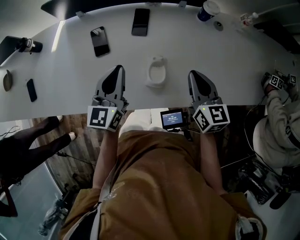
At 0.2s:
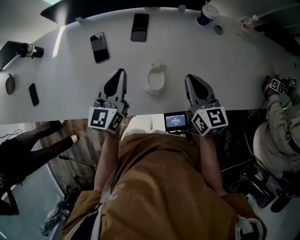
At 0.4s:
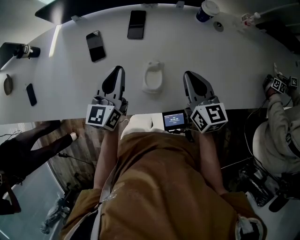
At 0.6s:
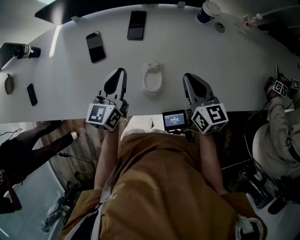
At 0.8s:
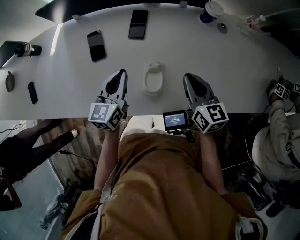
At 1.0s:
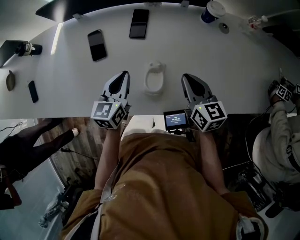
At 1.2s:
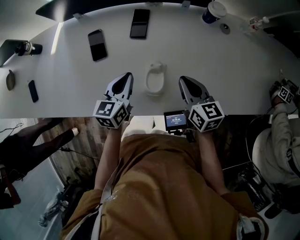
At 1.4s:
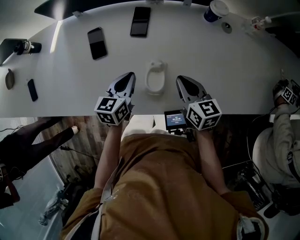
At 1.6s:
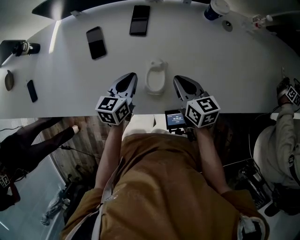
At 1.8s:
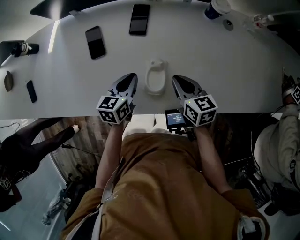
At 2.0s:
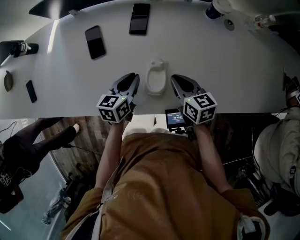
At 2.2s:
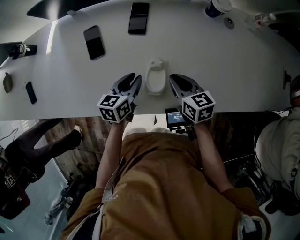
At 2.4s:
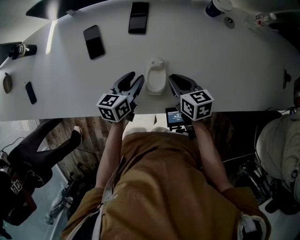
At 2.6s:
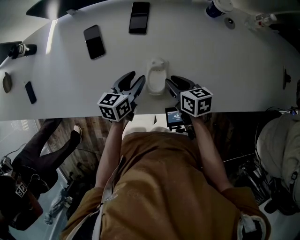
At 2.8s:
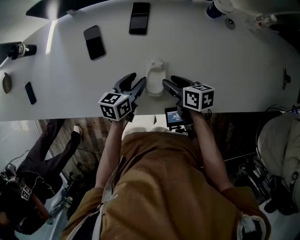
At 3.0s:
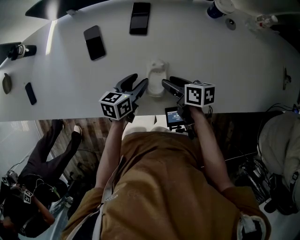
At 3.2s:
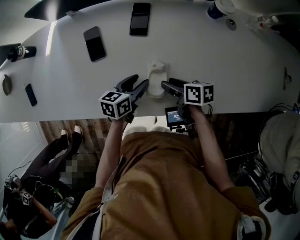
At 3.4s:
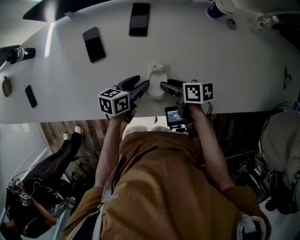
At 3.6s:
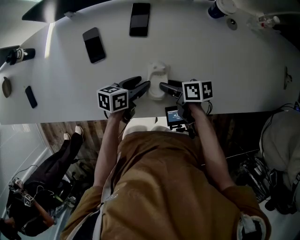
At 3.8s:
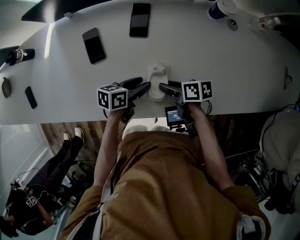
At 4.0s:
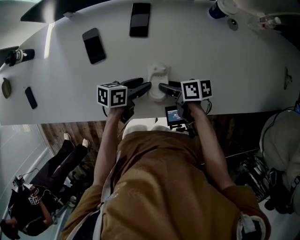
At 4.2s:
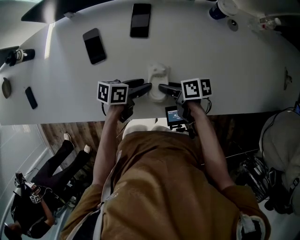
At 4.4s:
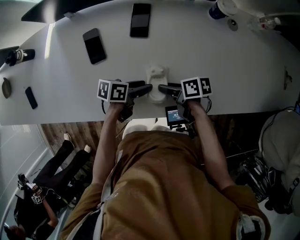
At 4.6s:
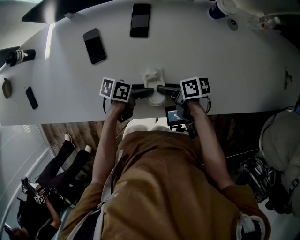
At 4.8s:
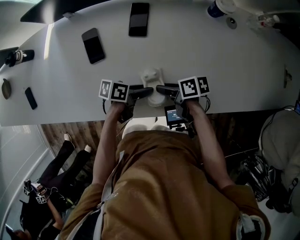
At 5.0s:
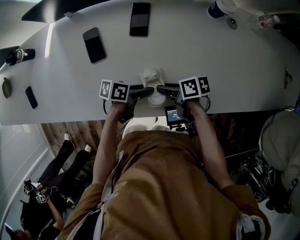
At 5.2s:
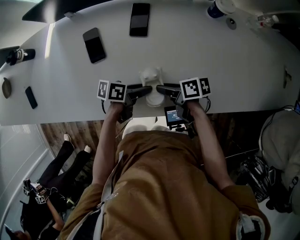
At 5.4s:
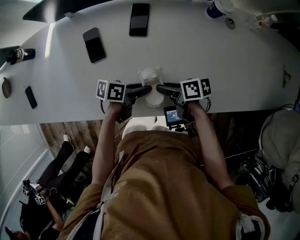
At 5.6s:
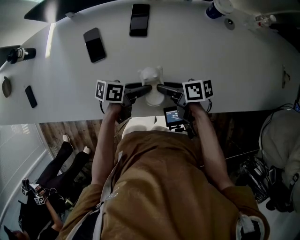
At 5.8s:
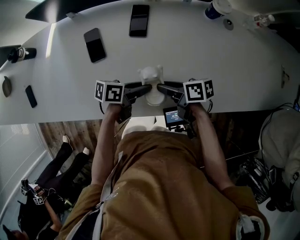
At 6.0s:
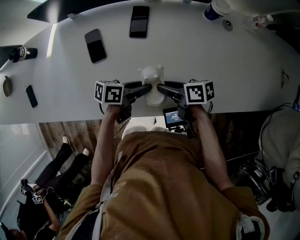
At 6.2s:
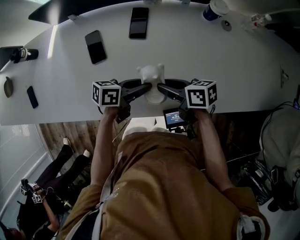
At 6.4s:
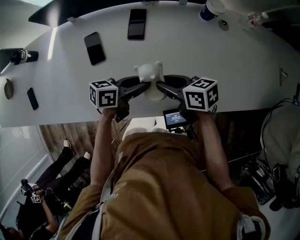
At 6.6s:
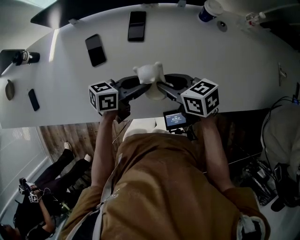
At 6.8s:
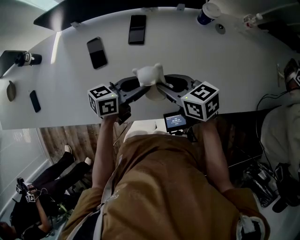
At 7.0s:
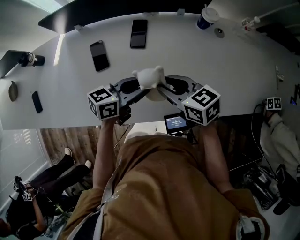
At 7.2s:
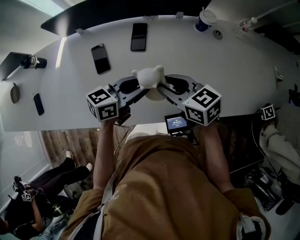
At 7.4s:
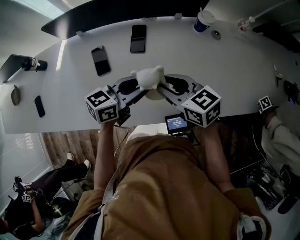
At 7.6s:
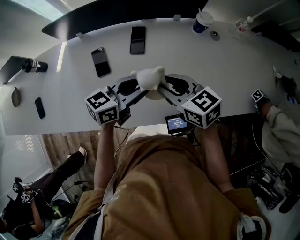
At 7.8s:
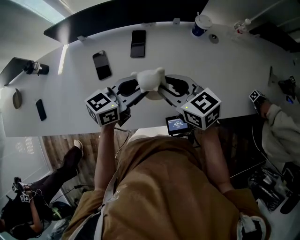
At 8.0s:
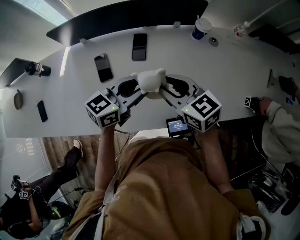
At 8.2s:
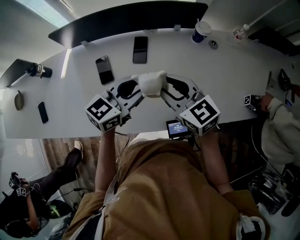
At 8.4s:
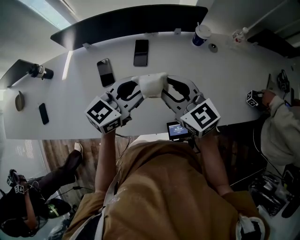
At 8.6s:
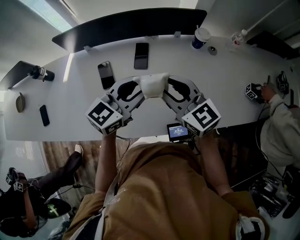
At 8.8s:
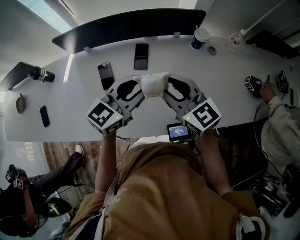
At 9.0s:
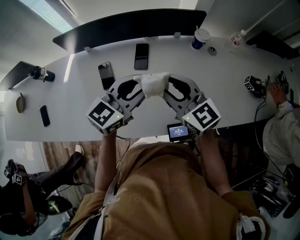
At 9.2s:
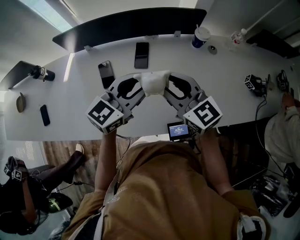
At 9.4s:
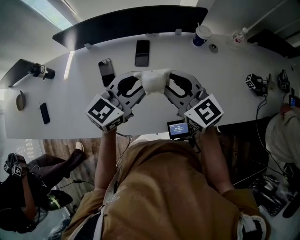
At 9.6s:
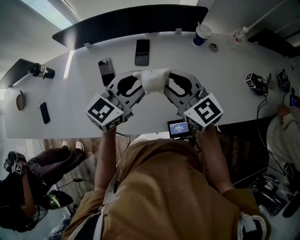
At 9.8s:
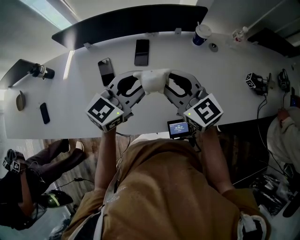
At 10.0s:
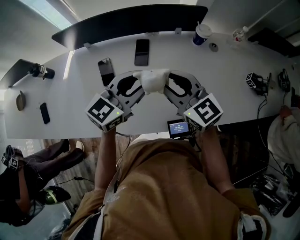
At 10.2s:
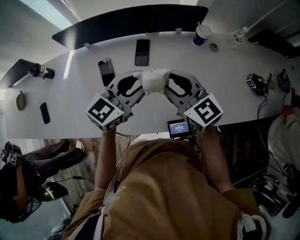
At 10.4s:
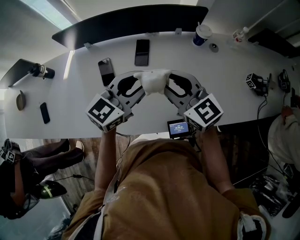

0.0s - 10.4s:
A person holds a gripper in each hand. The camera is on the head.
0.0s - 1.4s: The grippers both shift downward by about 10 cm. The left gripper changes its angle by about 30 degrees.
1.4s - 3.0s: The two grippers go approximately 10 cm downward. The right gripper turns by roughly 40 degrees, and opens its fingers. The left gripper opens.
3.0s - 4.4s: The left gripper rotates about 30 degrees.
4.4s - 6.0s: The right gripper travels upward by about 5 cm.
6.0s - 7.4s: The two grippers go about 15 cm upward. The left gripper changes its angle by some 40 degrees. Meanwhile the right gripper rotates around the line of its fingers by roughly 40 degrees, counterclockwise from behind.
7.4s - 9.0s: Both grippers move upward, about 10 cm. The left gripper changes its angle by about 30 degrees. The right gripper changes its angle by about 30 degrees.
9.0s - 10.4s: Neither gripper changes place.

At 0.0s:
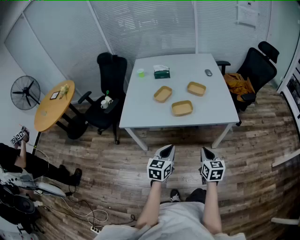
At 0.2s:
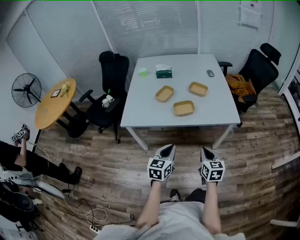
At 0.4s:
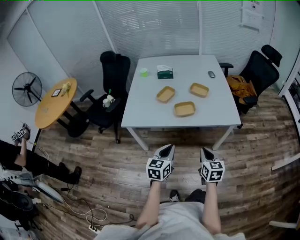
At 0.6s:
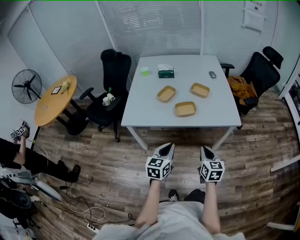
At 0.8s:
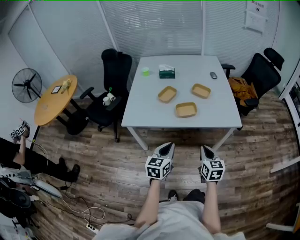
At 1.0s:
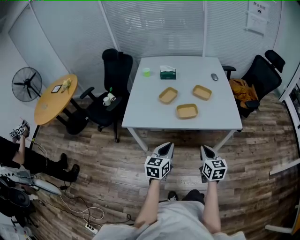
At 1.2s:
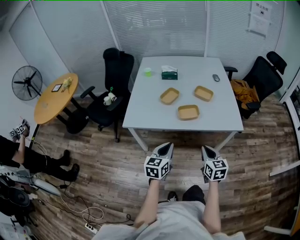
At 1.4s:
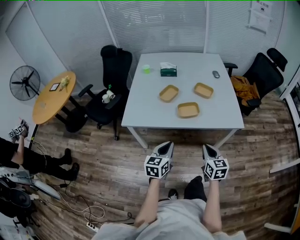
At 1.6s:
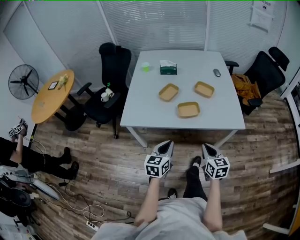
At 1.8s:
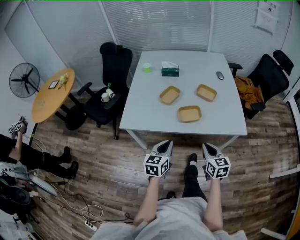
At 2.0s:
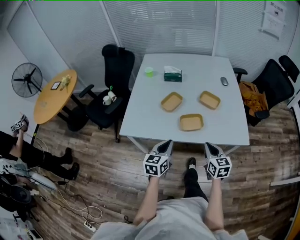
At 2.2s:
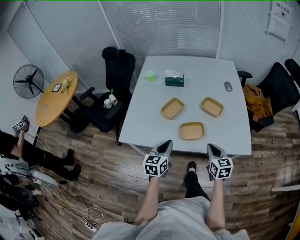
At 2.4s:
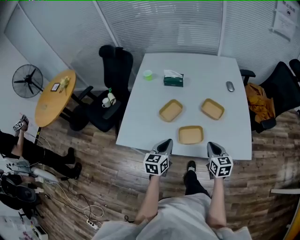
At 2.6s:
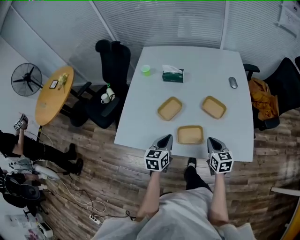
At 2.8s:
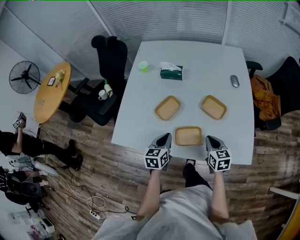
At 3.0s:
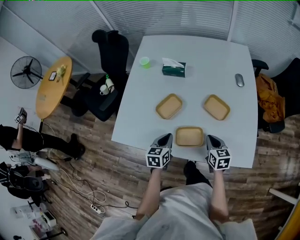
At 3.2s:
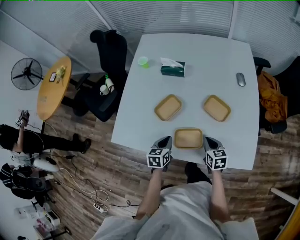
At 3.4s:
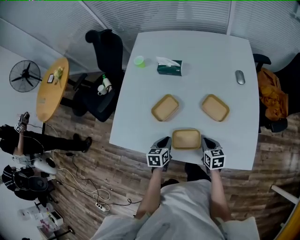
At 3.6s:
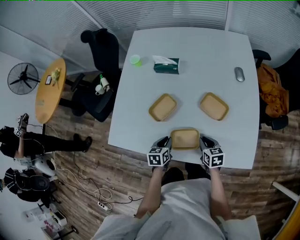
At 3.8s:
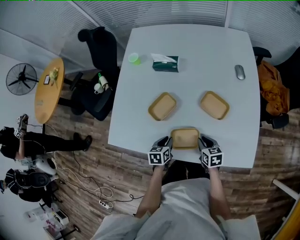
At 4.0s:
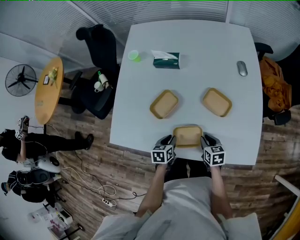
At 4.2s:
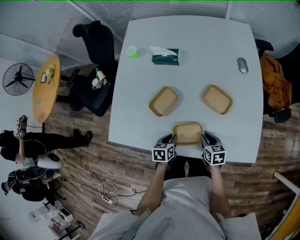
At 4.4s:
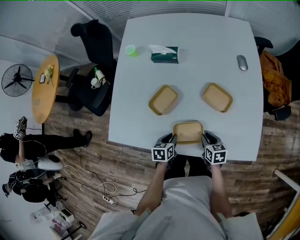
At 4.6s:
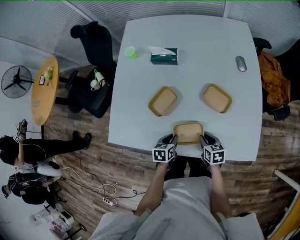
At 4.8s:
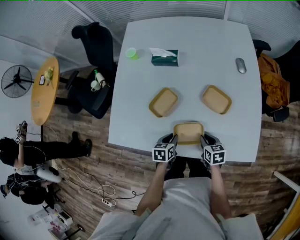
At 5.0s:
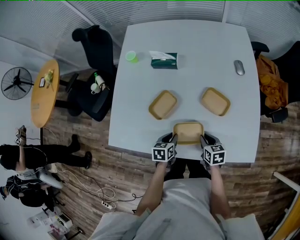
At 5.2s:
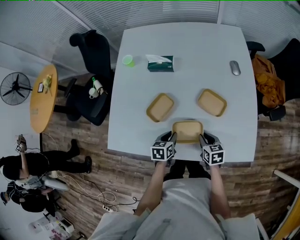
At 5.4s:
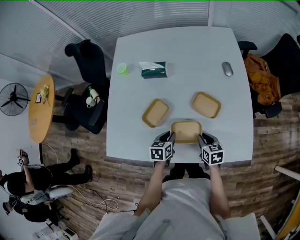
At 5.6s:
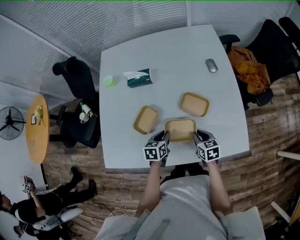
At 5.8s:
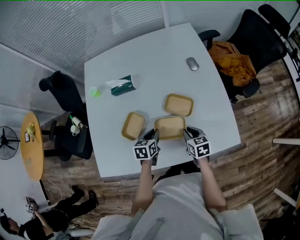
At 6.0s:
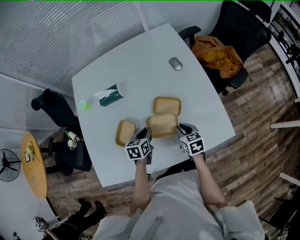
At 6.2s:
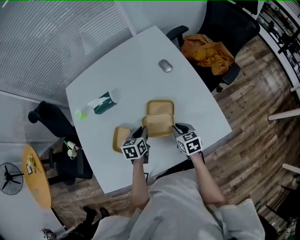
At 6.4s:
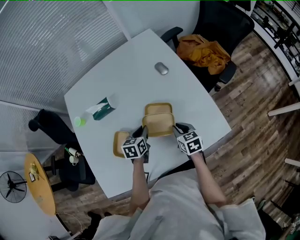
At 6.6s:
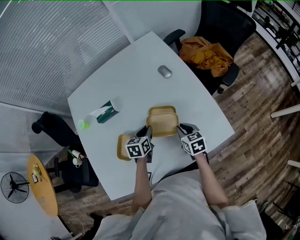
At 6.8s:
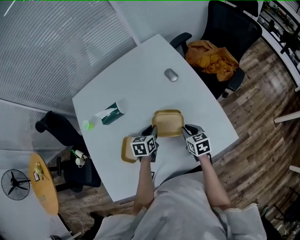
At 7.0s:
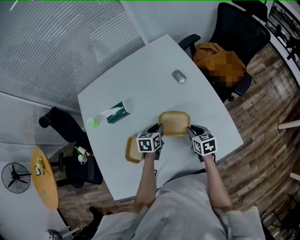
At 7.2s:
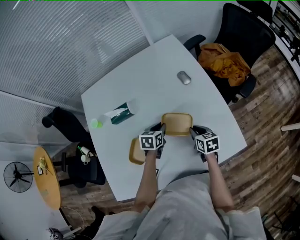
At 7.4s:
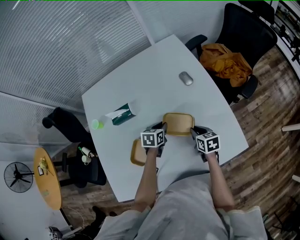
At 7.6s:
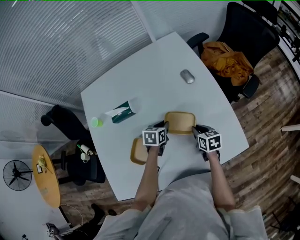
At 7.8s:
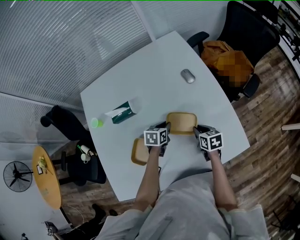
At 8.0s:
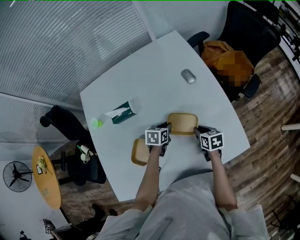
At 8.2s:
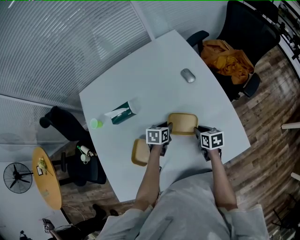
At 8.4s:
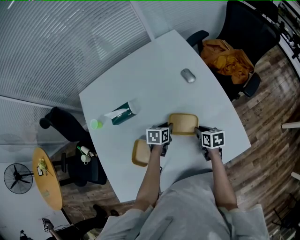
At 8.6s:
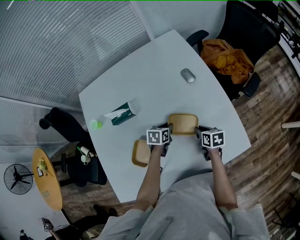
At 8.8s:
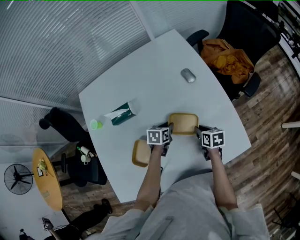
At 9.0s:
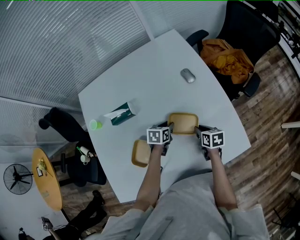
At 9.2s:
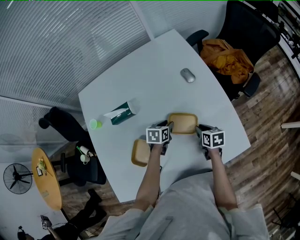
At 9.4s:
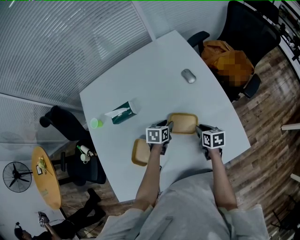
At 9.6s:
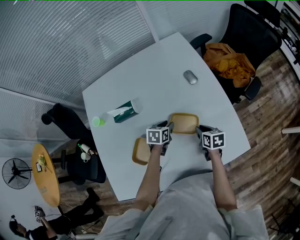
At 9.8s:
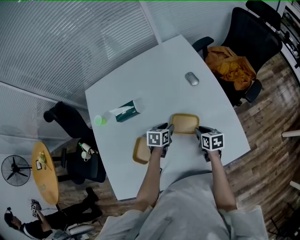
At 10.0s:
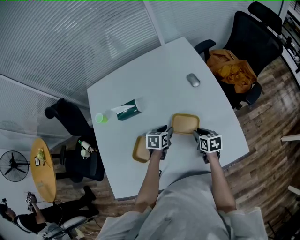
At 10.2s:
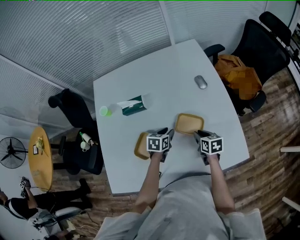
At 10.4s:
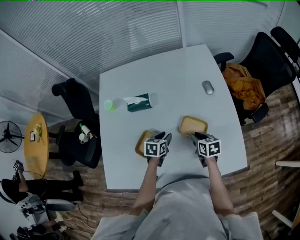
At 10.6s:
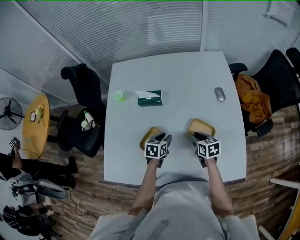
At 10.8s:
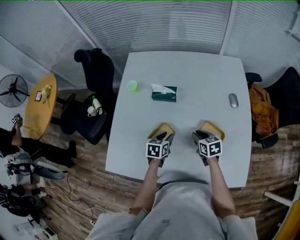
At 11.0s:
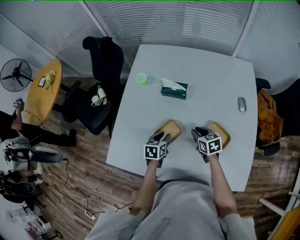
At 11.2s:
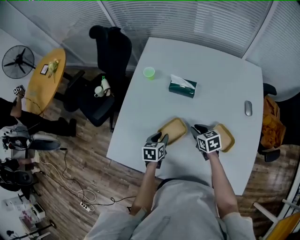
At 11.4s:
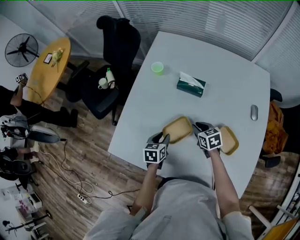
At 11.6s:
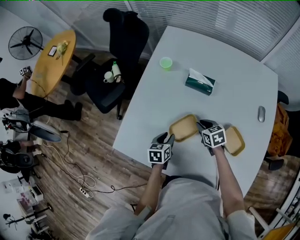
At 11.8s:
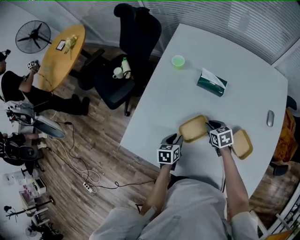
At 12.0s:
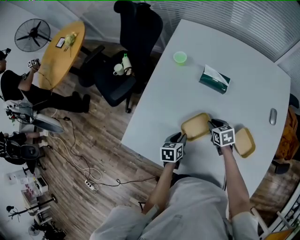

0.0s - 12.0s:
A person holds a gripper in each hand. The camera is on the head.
0.0s - 1.6s: The two grippers go roughly 5 cm forward.
1.6s - 3.0s: The two grippers go roughly 30 cm forward.
3.0s - 4.4s: The grippers both shift downward by approximately 10 cm. The right gripper opens up, while the left gripper swivels about 20 degrees.
4.4s - 6.0s: The right gripper is displaced upward, forward and to the right by roughly 15 cm. The left gripper heads forward, to the right and upward, covering some 20 cm, and swivels some 20 degrees.
6.0s - 7.6s: The right gripper heads forward, covering about 10 cm, while the left gripper heads forward, covering approximately 15 cm.
7.6s - 9.0s: The grippers move only a little.
9.0s - 10.4s: The left gripper shifts roughly 10 cm to the left and backward. The right gripper heads to the left, covering some 10 cm, and rotates approximately 20 degrees.
10.4s - 12.0s: The right gripper moves about 25 cm, and changes its angle by roughly 40 degrees; the left gripper moves approximately 25 cm, and swivels some 40 degrees.

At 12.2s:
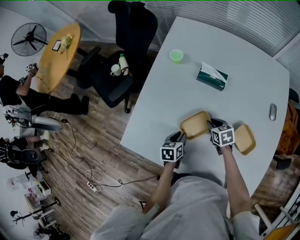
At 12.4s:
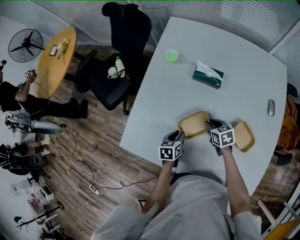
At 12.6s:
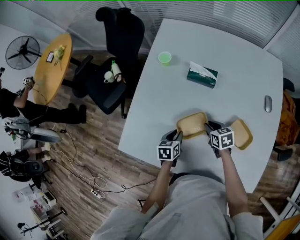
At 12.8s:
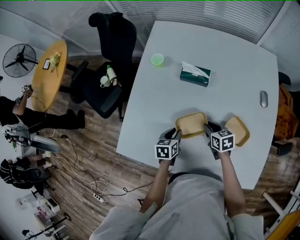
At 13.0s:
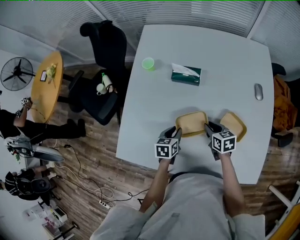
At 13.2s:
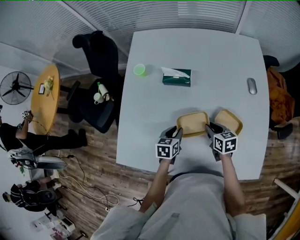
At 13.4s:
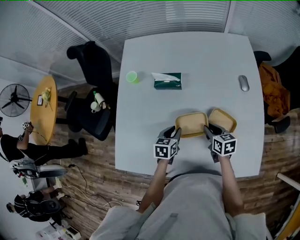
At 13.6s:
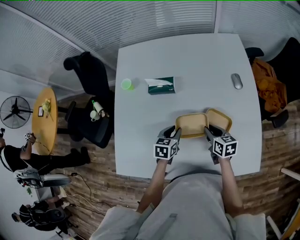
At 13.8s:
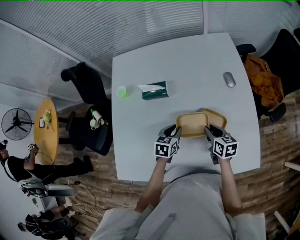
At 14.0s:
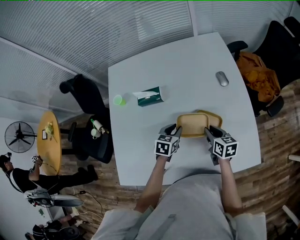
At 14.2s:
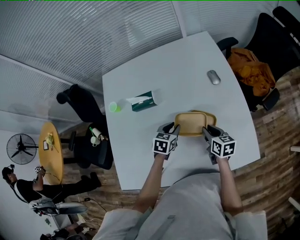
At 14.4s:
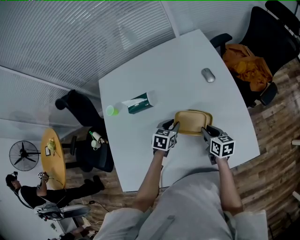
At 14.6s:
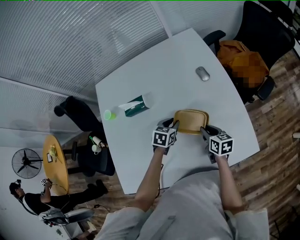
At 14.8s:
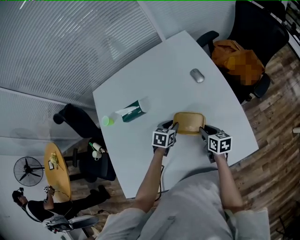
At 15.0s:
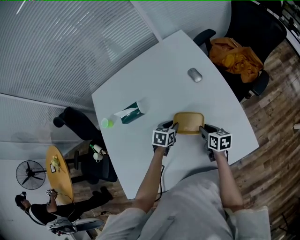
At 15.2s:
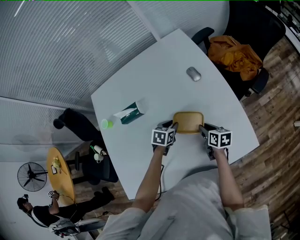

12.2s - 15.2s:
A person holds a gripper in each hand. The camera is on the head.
12.2s - 13.8s: The left gripper ends up roughly 20 cm from where it was, and turns by some 40 degrees. The right gripper moves roughly 25 cm, and changes its angle by about 40 degrees.
13.8s - 15.2s: The right gripper heads to the right, covering roughly 10 cm, and changes its angle by about 20 degrees. The left gripper travels to the right and forward by roughly 15 cm, and changes its angle by about 20 degrees.
